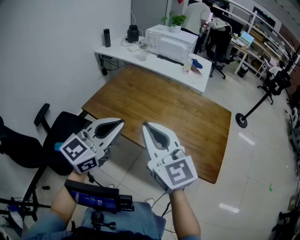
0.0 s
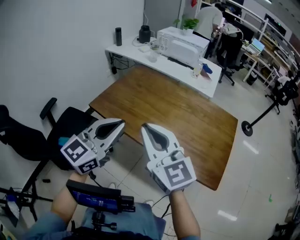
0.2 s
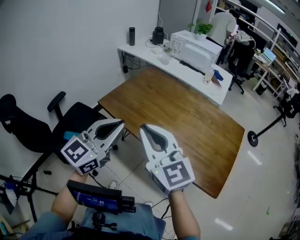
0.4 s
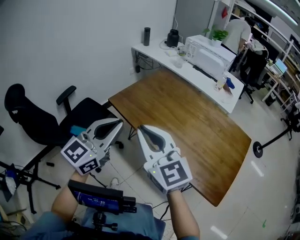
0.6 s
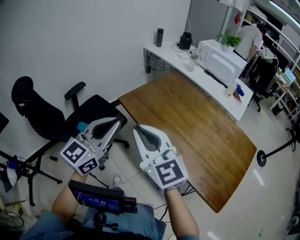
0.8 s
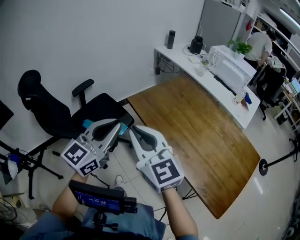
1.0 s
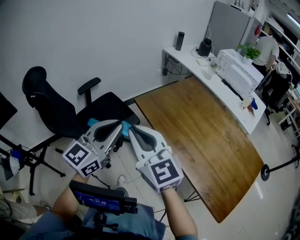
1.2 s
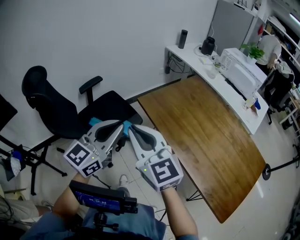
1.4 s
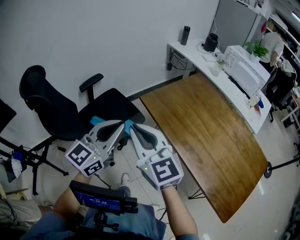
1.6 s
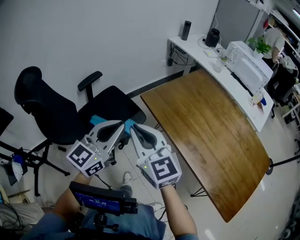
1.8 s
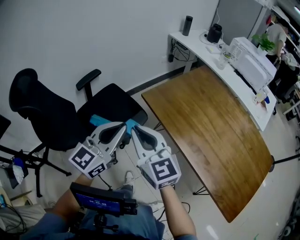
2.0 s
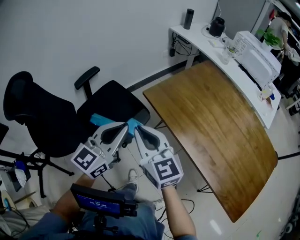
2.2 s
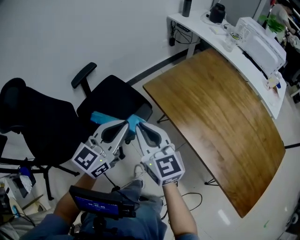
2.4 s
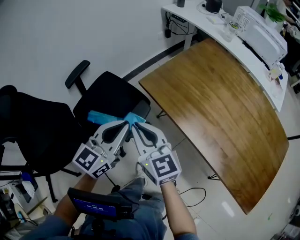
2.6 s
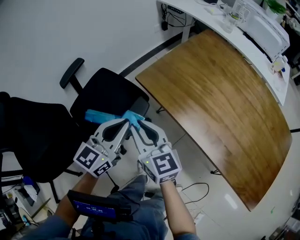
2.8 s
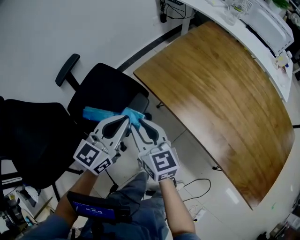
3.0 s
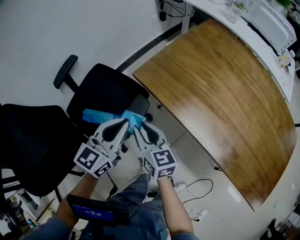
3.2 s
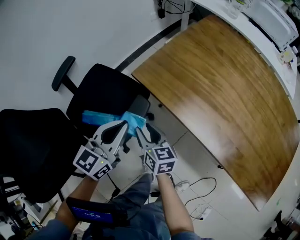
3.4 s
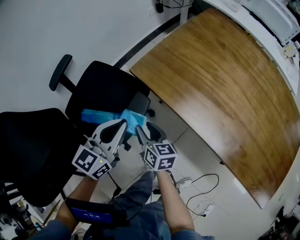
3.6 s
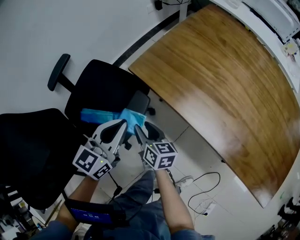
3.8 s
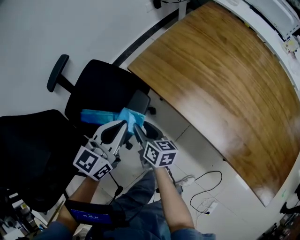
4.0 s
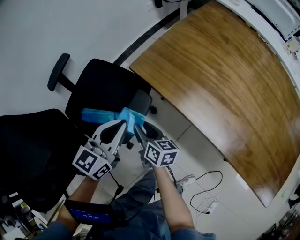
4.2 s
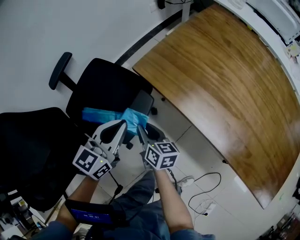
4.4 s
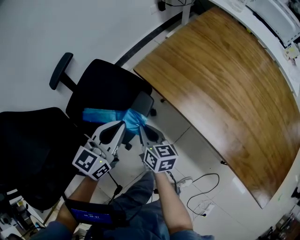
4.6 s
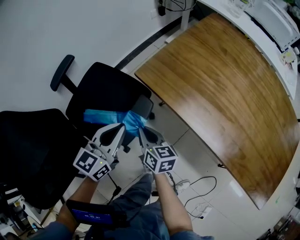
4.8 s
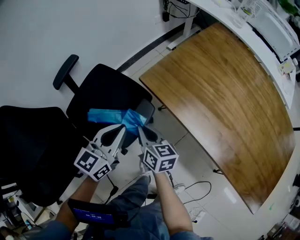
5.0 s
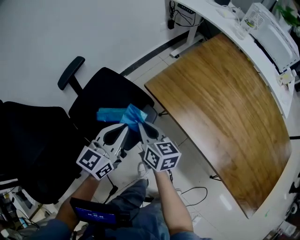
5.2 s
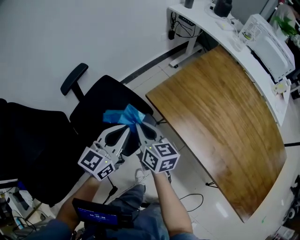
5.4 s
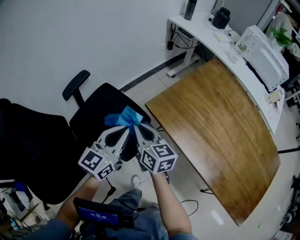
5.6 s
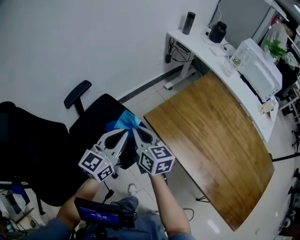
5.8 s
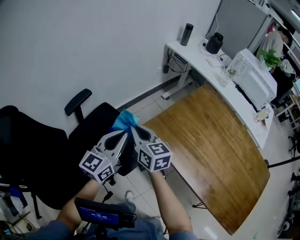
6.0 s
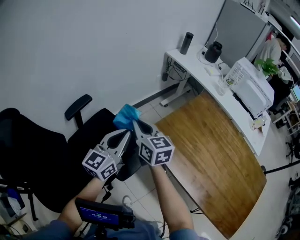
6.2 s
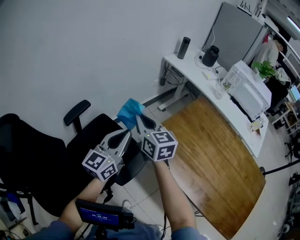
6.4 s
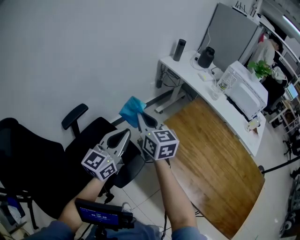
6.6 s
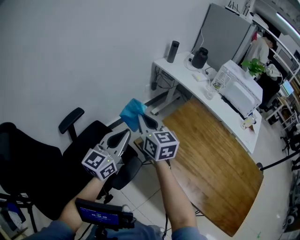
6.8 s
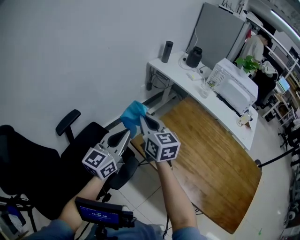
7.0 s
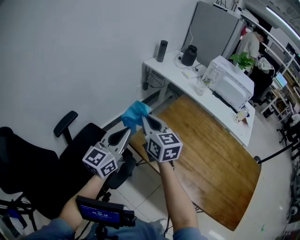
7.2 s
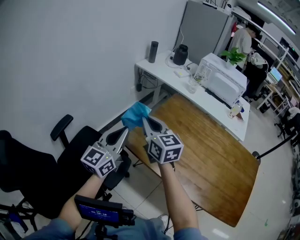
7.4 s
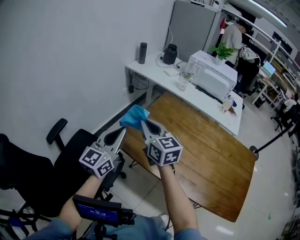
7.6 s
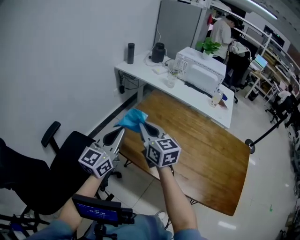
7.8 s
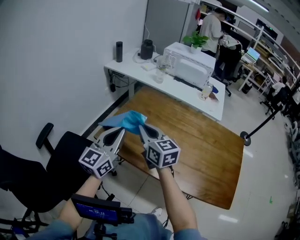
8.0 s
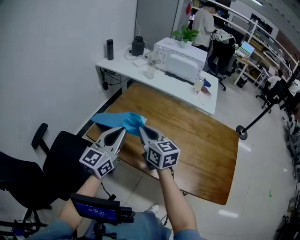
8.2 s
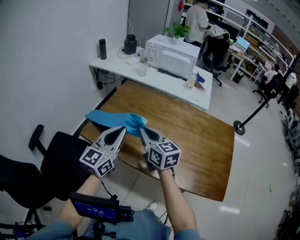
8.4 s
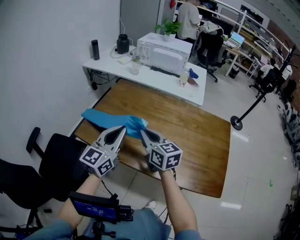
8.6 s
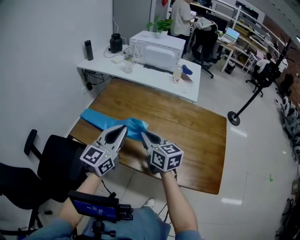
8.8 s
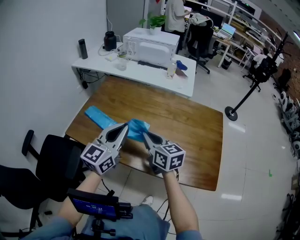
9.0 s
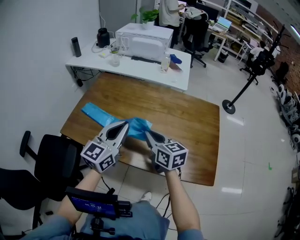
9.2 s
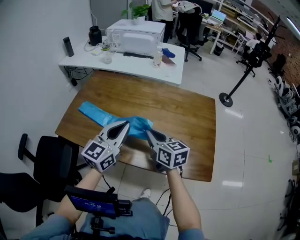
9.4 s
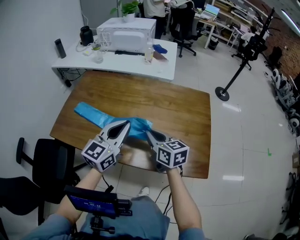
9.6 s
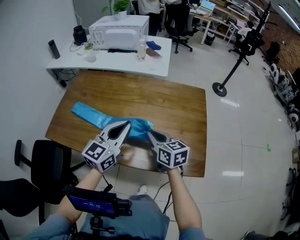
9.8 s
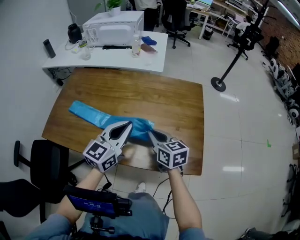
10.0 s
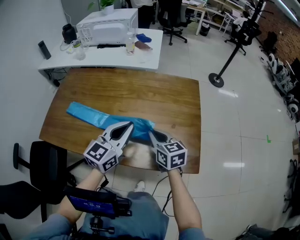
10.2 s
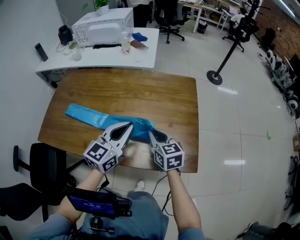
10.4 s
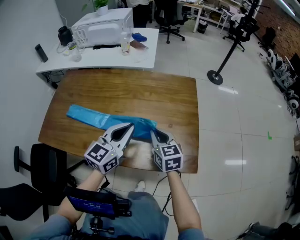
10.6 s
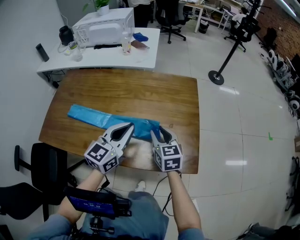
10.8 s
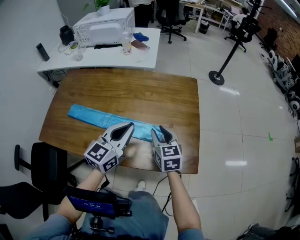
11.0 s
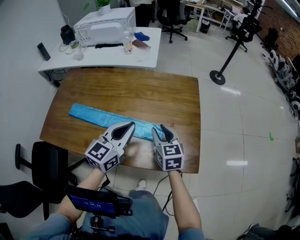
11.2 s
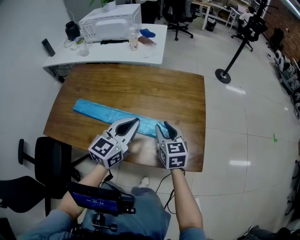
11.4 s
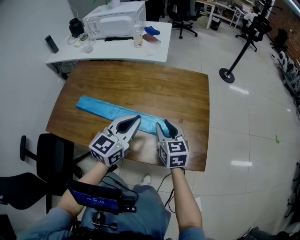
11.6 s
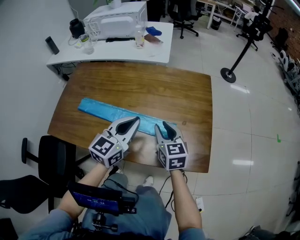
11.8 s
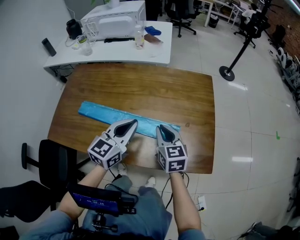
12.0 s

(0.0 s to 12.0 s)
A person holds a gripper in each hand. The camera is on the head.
0.0 s - 1.6 s: The left gripper ends up roughly 25 cm from where it was, and turns by some 30 degrees. Meanwhile the right gripper moves approximately 25 cm, and swivels about 30 degrees.
1.6 s - 3.0 s: The two grippers go about 25 cm downward and forward. The right gripper rotates roughly 30 degrees.
3.0 s - 4.4 s: The left gripper travels downward by roughly 5 cm; the right gripper shifts roughly 15 cm downward, and swivels some 30 degrees.
4.4 s - 6.0 s: The left gripper is displaced upward and forward by some 20 cm. Meanwhile the right gripper moves upward and forward, about 30 cm, and rotates some 30 degrees.
6.0 s - 7.6 s: The two grippers go roughly 20 cm to the right and upward. The right gripper changes its angle by some 20 degrees.
7.6 s - 9.0 s: The two grippers go about 35 cm to the right. The left gripper changes its angle by some 20 degrees.
9.0 s - 10.4 s: The left gripper is displaced to the right by roughly 25 cm. Meanwhile the right gripper moves to the right and downward, about 25 cm, and swivels some 20 degrees.
10.4 s - 12.0 s: The left gripper moves to the left, about 5 cm. Meanwhile the right gripper opens, then closes again.

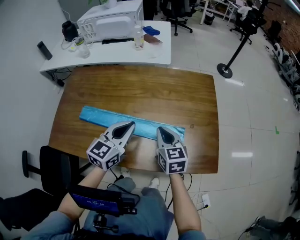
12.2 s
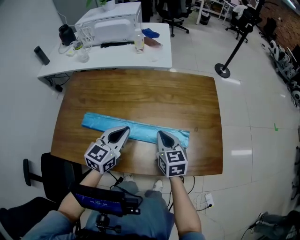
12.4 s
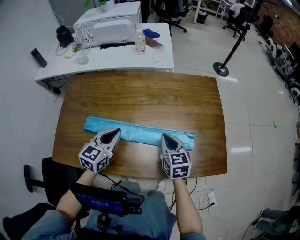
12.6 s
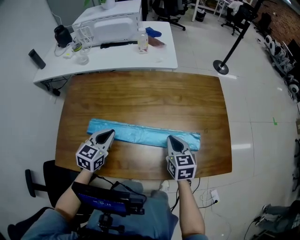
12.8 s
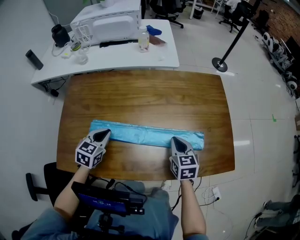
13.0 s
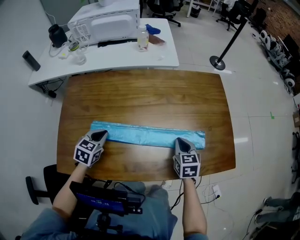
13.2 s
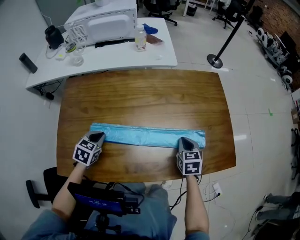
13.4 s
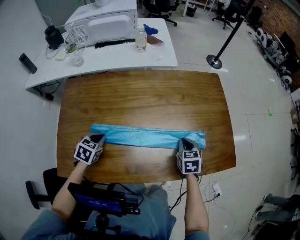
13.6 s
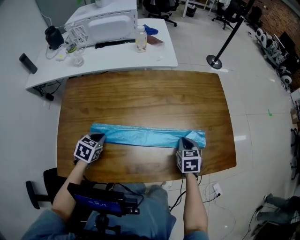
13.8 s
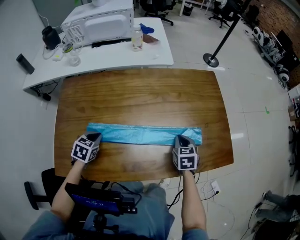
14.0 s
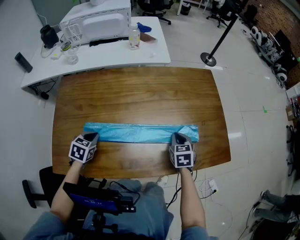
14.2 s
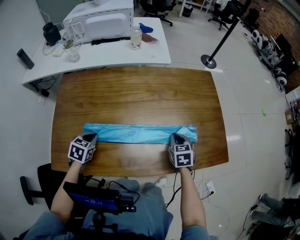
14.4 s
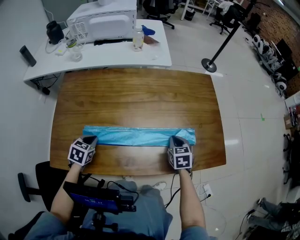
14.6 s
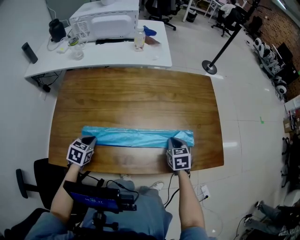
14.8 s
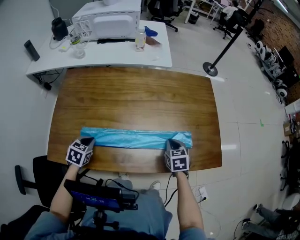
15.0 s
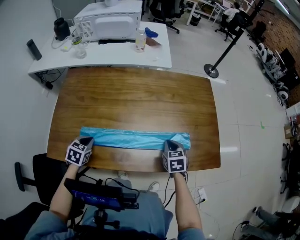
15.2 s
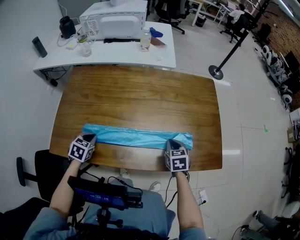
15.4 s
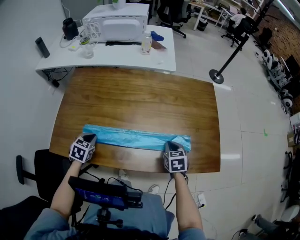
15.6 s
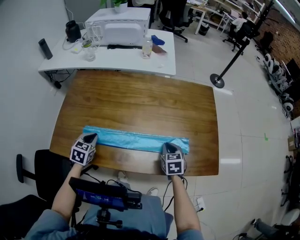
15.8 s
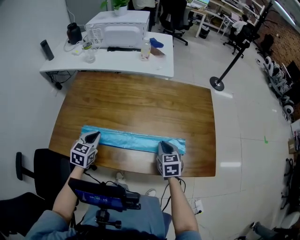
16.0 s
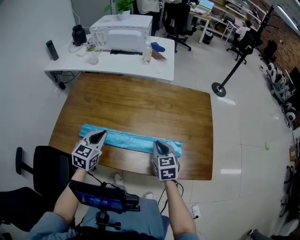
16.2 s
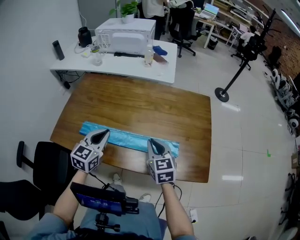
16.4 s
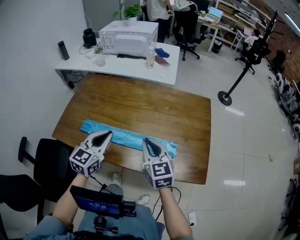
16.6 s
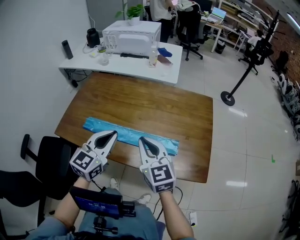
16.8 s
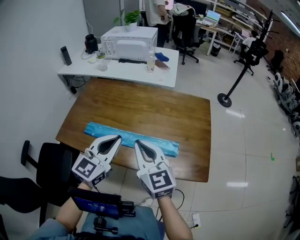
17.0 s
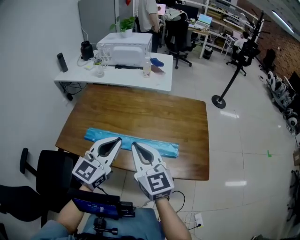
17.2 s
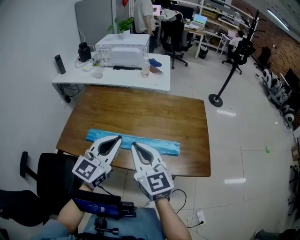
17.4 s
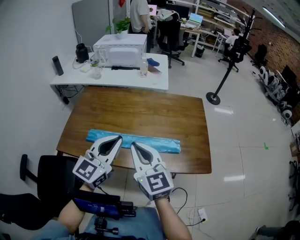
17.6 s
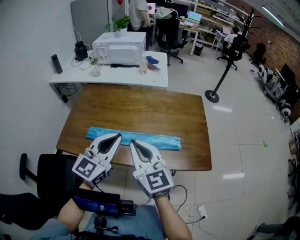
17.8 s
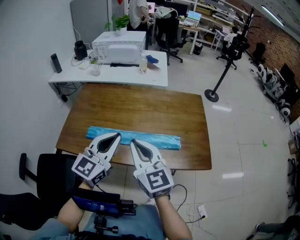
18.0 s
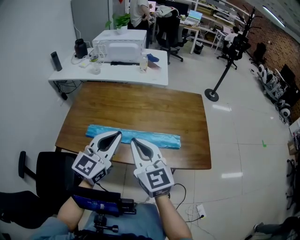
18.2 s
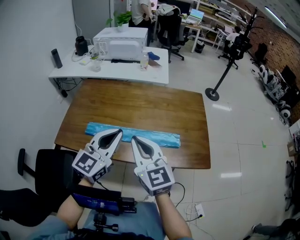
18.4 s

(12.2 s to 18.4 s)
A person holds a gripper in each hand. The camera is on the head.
12.2 s - 13.8 s: The right gripper shifts approximately 10 cm downward, and turns by approximately 30 degrees; the left gripper travels to the left and downward by approximately 30 cm, and points its fingers some 40 degrees further downward.
13.8 s - 15.4 s: The left gripper travels backward by roughly 10 cm.
15.4 s - 16.8 s: The right gripper goes approximately 25 cm upward, and points its fingers some 40 degrees further upward, while the left gripper travels upward and to the right by approximately 35 cm, and angles its fingers upward, by about 50 degrees.
16.8 s - 18.4 s: The right gripper is displaced to the left, upward and backward by roughly 10 cm, while the left gripper heads upward, covering some 5 cm.

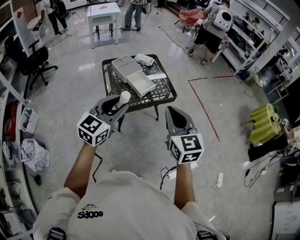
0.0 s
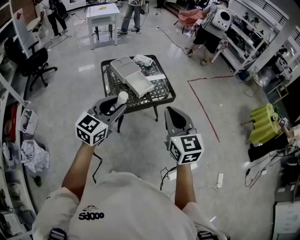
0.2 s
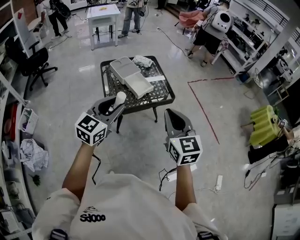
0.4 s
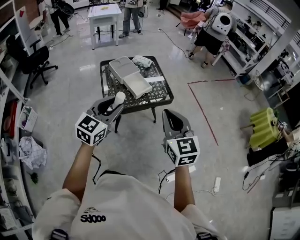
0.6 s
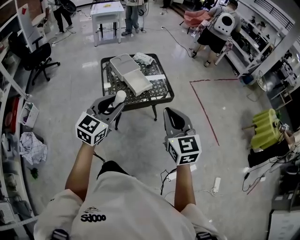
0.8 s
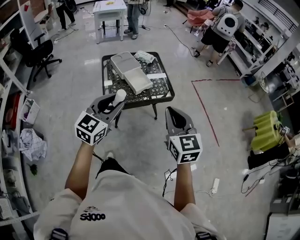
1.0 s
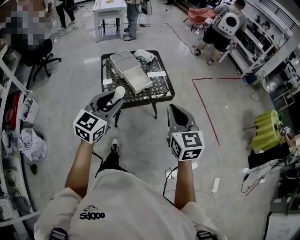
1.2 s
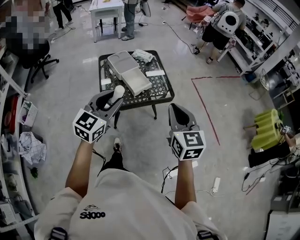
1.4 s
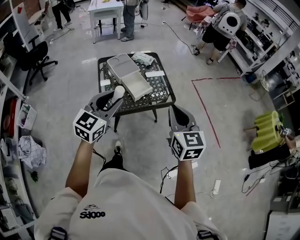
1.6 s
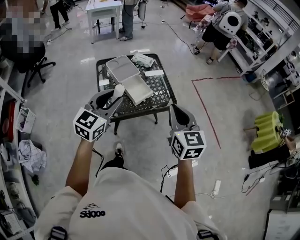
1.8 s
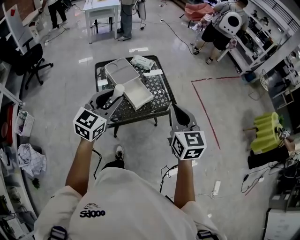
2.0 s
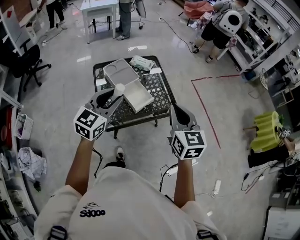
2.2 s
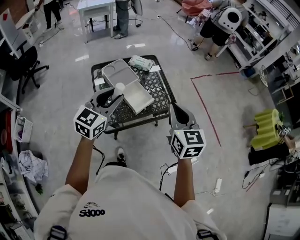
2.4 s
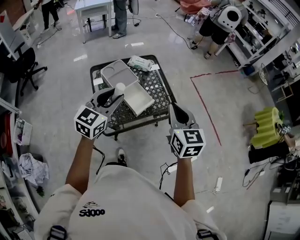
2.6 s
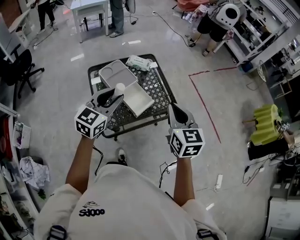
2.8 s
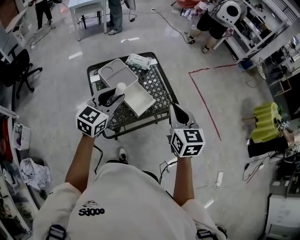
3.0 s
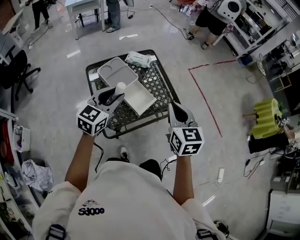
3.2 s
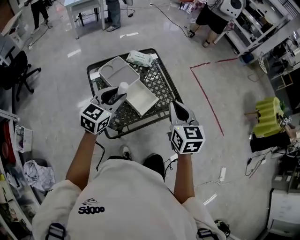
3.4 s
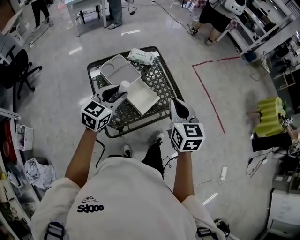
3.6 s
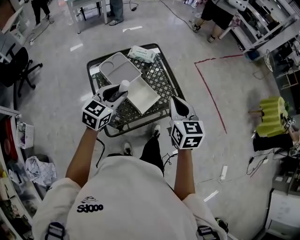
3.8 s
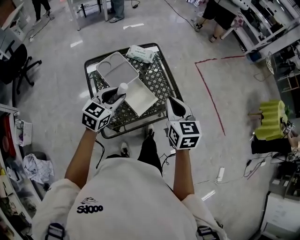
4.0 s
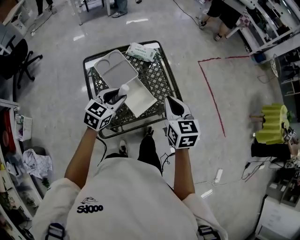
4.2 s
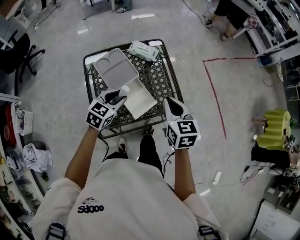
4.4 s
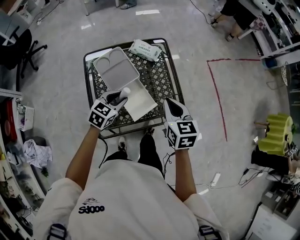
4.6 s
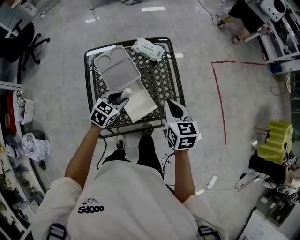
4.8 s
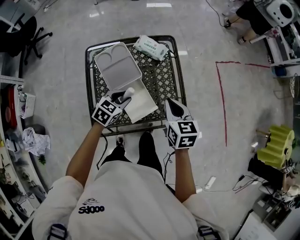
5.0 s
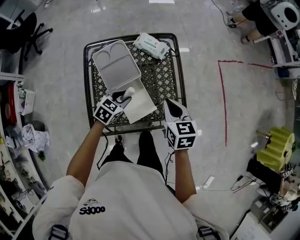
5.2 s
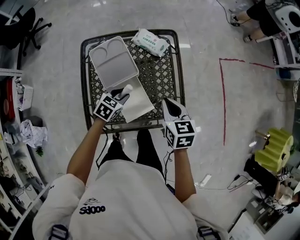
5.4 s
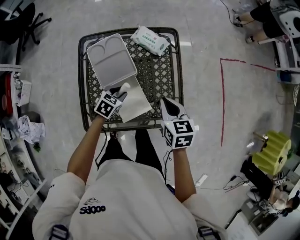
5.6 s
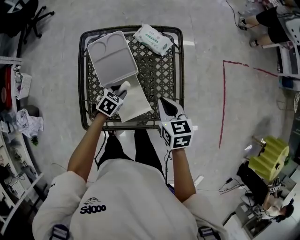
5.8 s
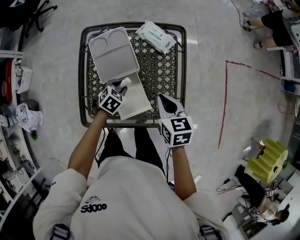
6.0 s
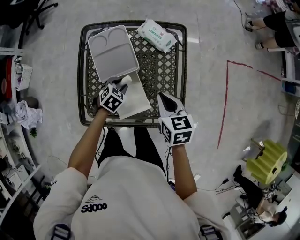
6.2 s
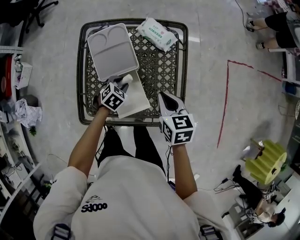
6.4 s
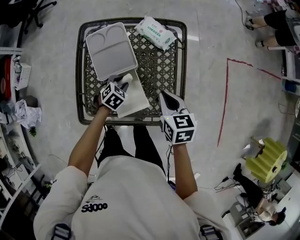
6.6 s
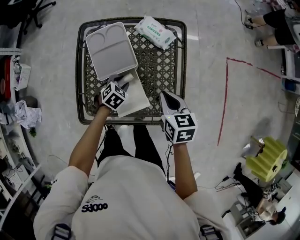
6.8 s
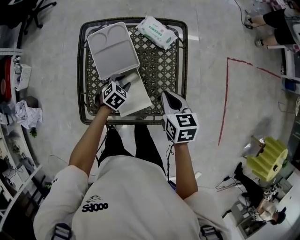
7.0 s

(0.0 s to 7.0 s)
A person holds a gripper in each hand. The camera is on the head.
0.0 s - 1.4 s: The left gripper is displaced forward by approximately 5 cm. The right gripper heads to the right and forward, covering some 10 cm.
1.4 s - 2.8 s: Both grippers move forward, some 20 cm.
2.8 s - 4.2 s: The left gripper heads downward and forward, covering roughly 15 cm. The right gripper goes some 15 cm forward and downward.
4.2 s - 5.6 s: The right gripper shifts some 20 cm downward and forward, and changes its angle by some 20 degrees. Meanwhile the left gripper travels downward by about 20 cm, and changes its angle by roughly 30 degrees.
5.6 s - 7.0 s: The grippers stay close to where they were, moving slightly.
